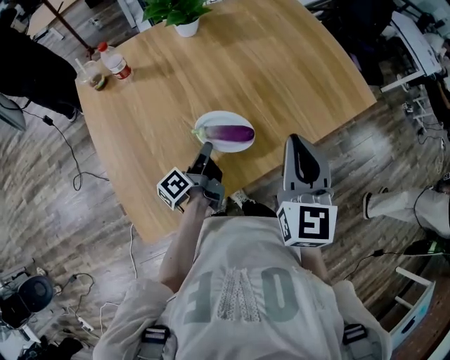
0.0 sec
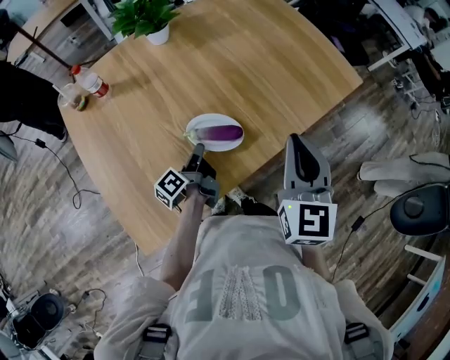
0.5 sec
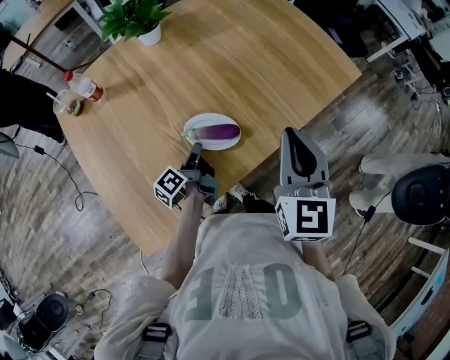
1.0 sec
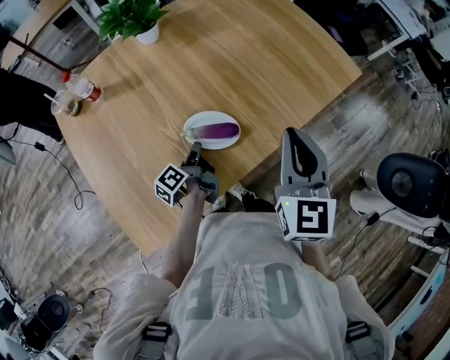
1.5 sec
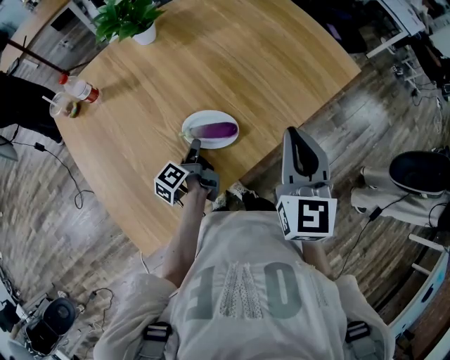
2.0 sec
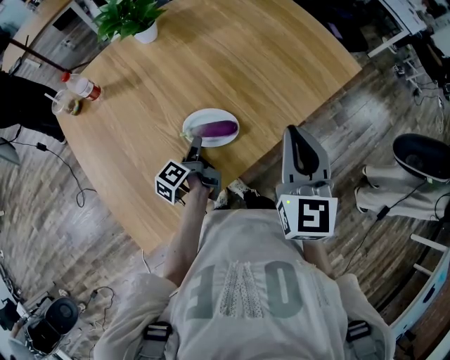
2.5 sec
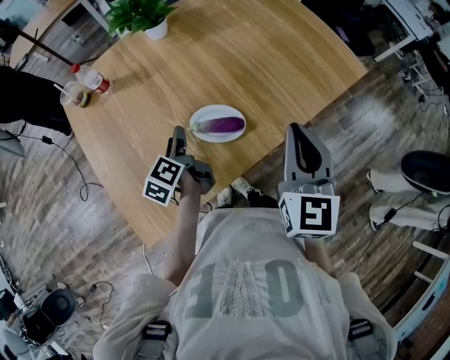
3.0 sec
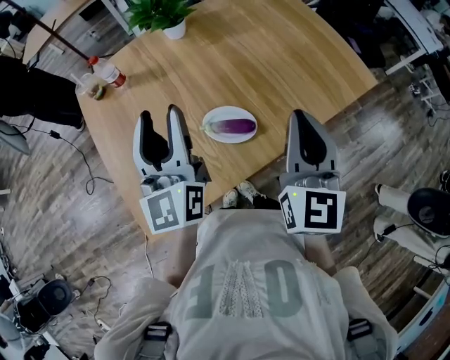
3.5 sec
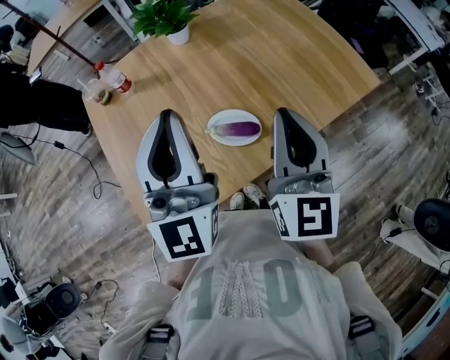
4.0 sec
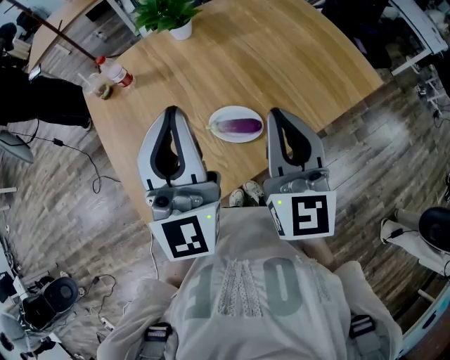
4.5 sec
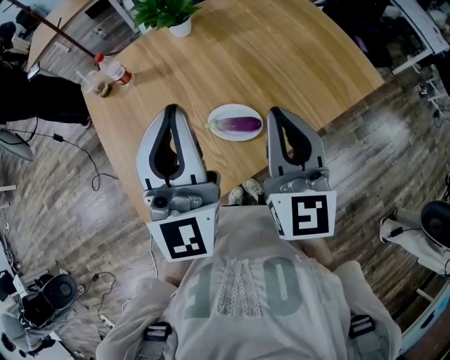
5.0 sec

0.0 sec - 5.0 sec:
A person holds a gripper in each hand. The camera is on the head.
0.0 sec - 2.5 sec: The right gripper moves approximately 5 cm.
2.5 sec - 5.0 sec: The right gripper changes place by some 10 cm.

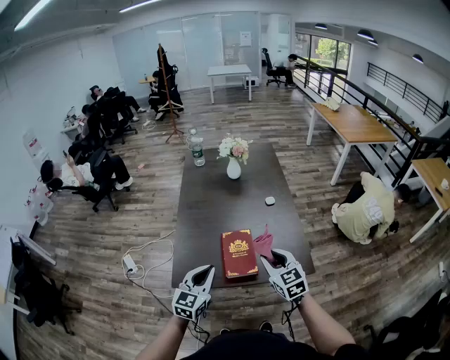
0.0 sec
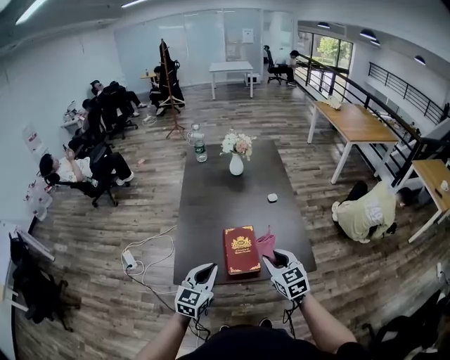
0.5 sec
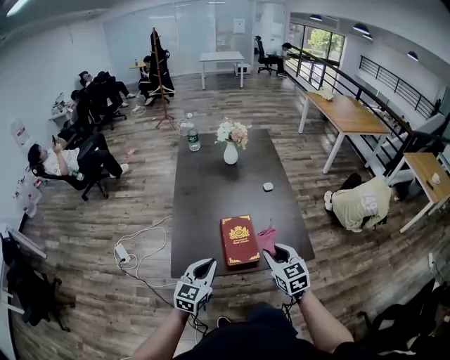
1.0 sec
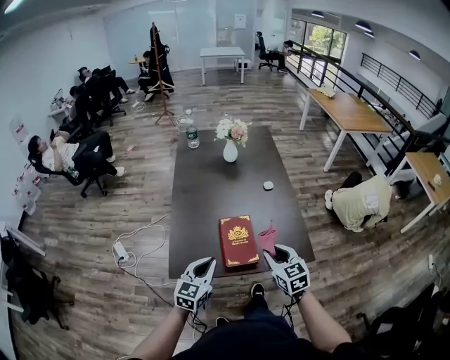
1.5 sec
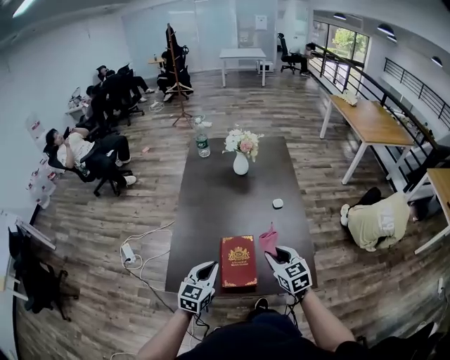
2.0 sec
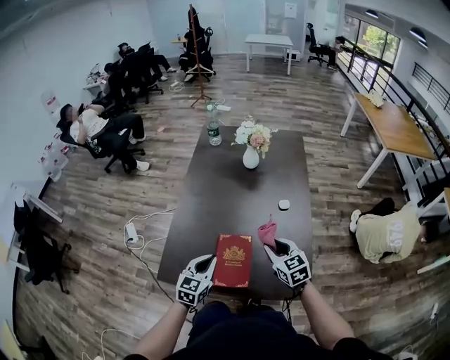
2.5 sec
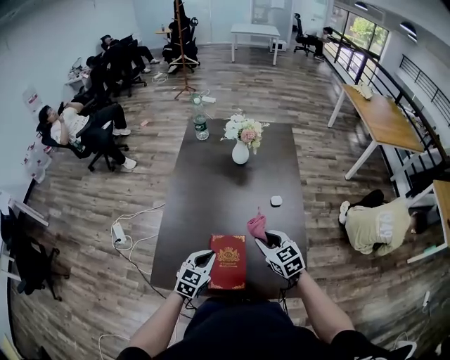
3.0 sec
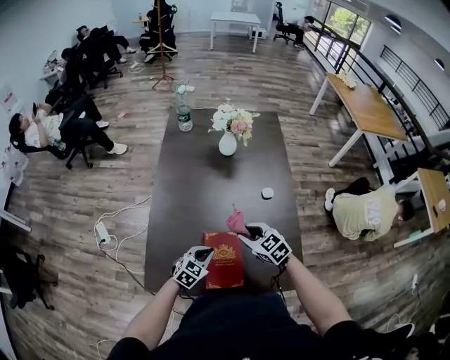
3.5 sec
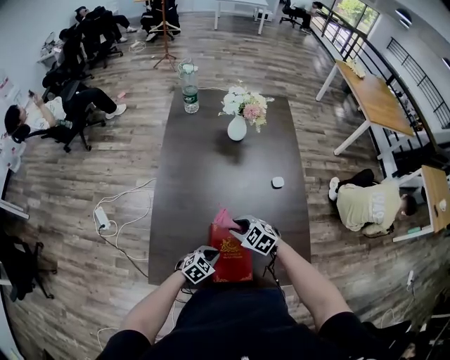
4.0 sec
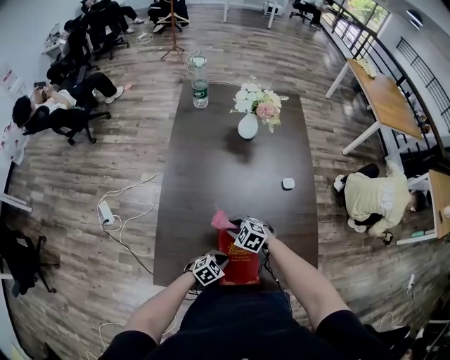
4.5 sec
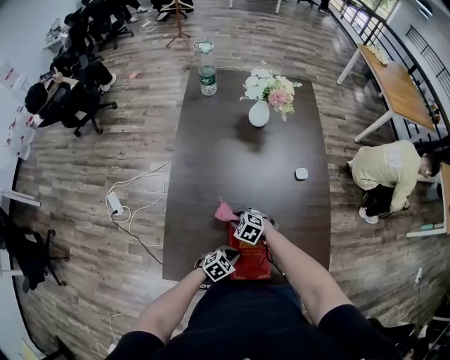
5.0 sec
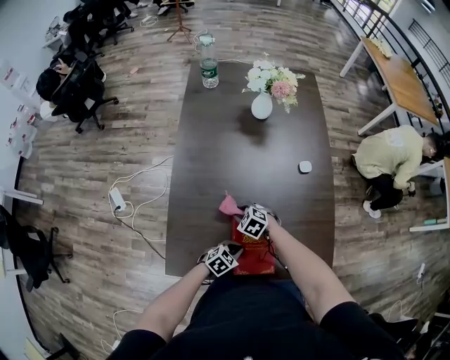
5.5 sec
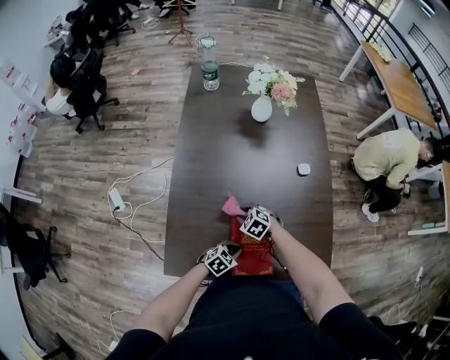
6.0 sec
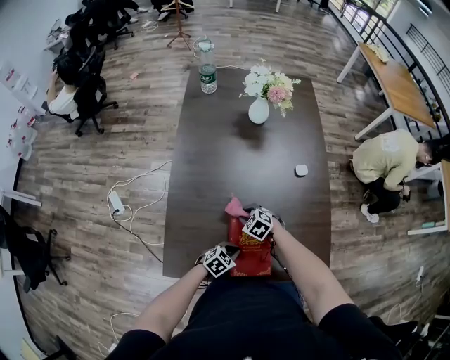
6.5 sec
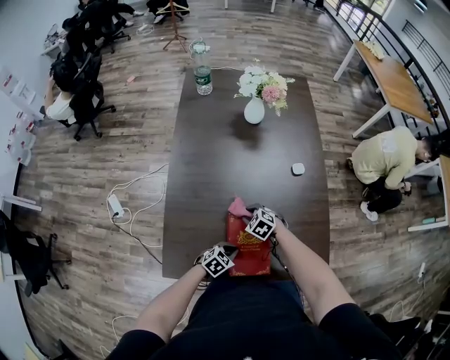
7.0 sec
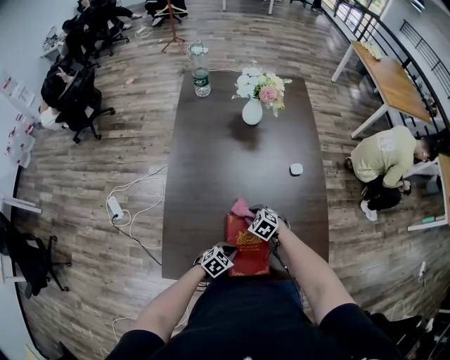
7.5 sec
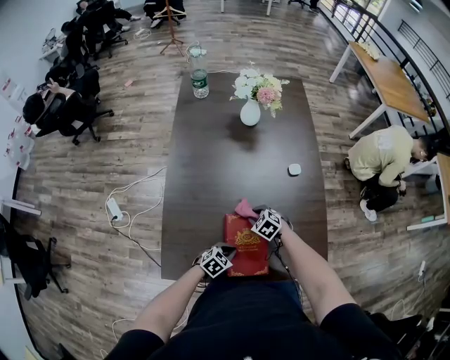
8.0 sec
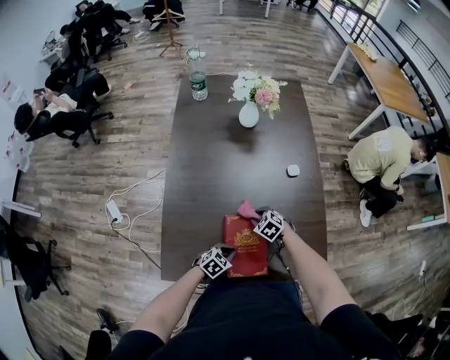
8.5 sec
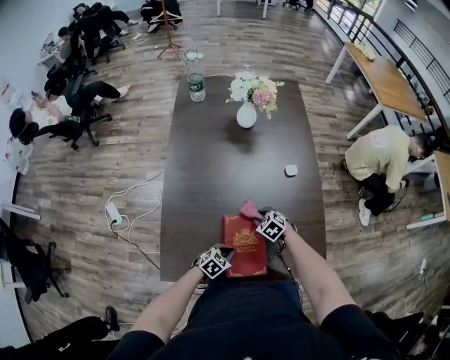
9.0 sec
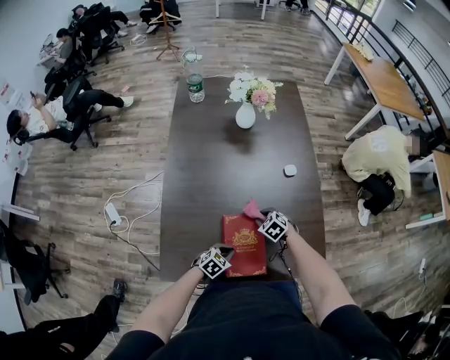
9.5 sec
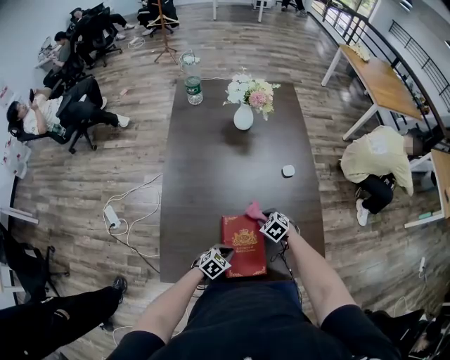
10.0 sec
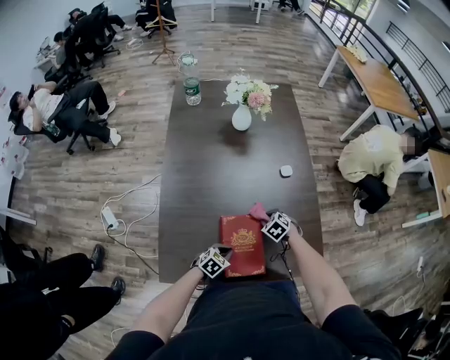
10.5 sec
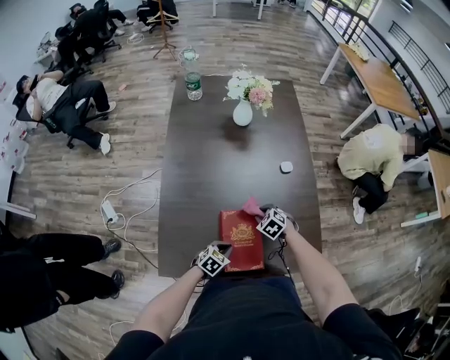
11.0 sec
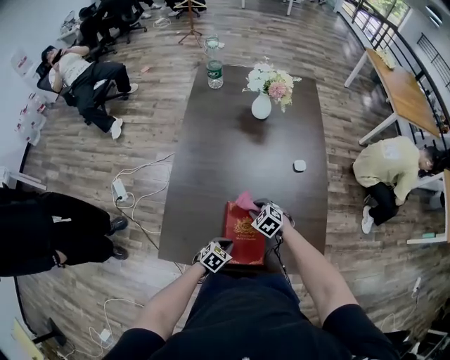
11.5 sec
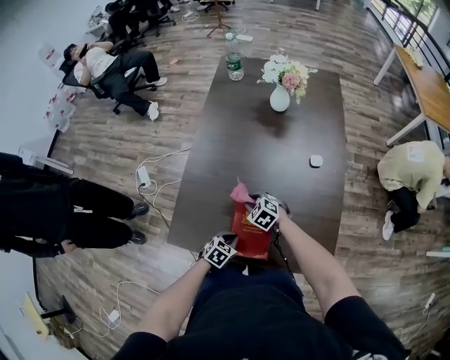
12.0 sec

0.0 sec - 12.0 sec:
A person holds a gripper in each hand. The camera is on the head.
0.0 sec - 2.0 sec: Both grippers travel together forward and downward, approximately 10 cm.
2.0 sec - 4.0 sec: The right gripper travels downward, forward and to the left by roughly 25 cm, and turns by roughly 40 degrees. Meanwhile the left gripper travels downward by roughly 25 cm, and changes its angle by about 40 degrees.
4.0 sec - 6.0 sec: The right gripper travels downward by roughly 15 cm.
6.0 sec - 8.0 sec: The right gripper moves some 10 cm.
8.0 sec - 10.0 sec: The right gripper moves to the right, about 5 cm.
10.0 sec - 12.0 sec: The right gripper shifts by about 15 cm, and changes its angle by roughly 30 degrees. The left gripper rotates roughly 20 degrees.

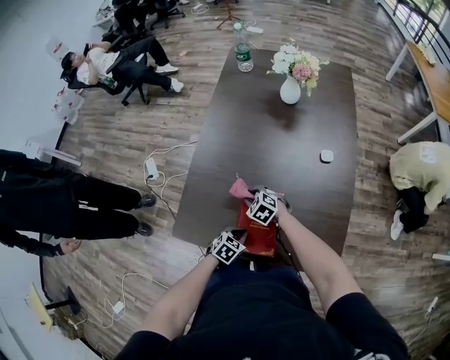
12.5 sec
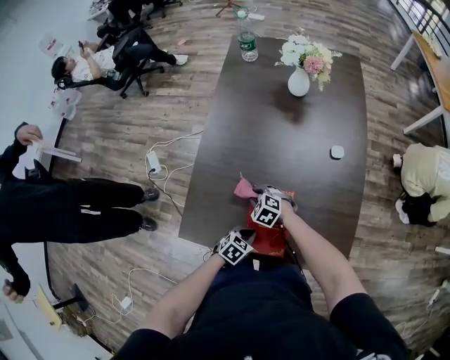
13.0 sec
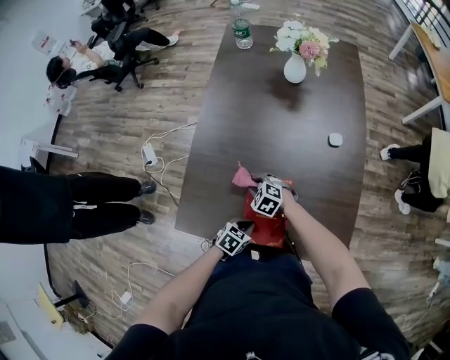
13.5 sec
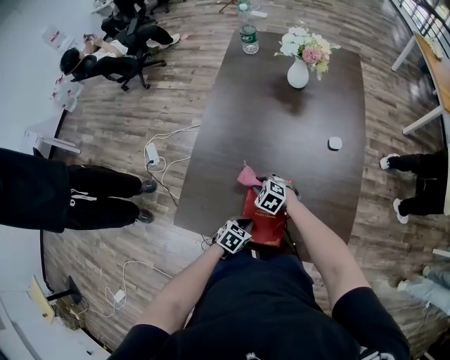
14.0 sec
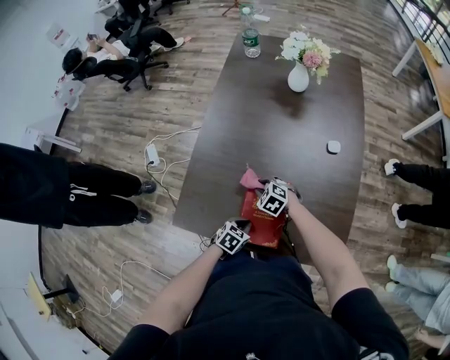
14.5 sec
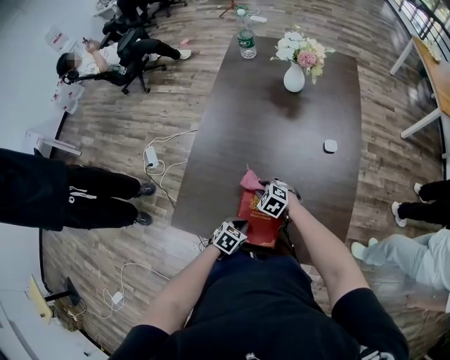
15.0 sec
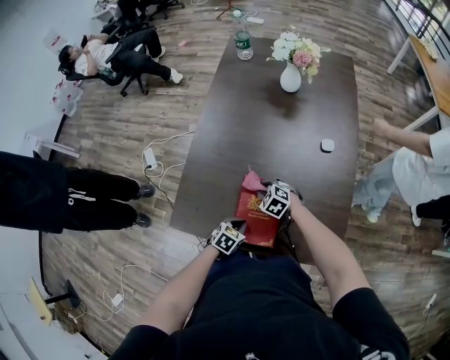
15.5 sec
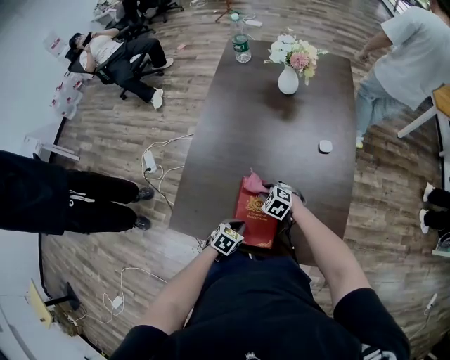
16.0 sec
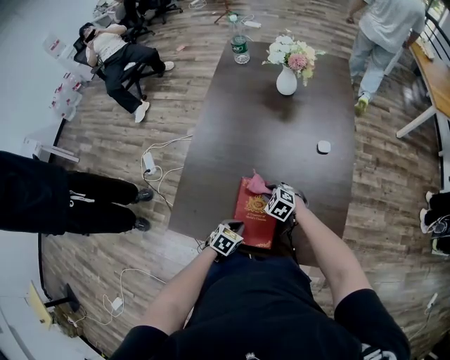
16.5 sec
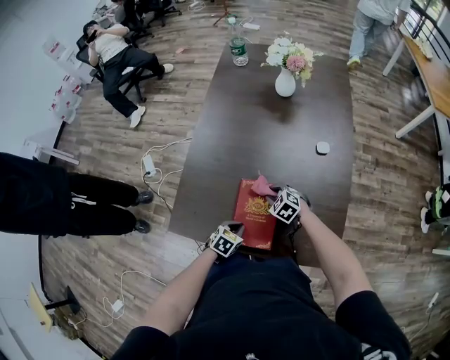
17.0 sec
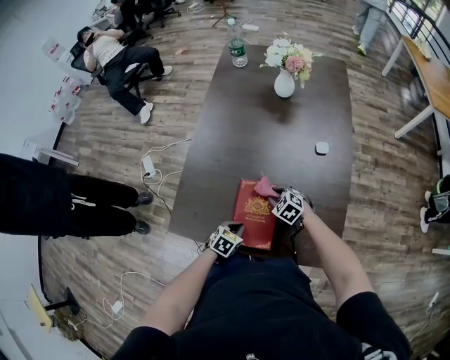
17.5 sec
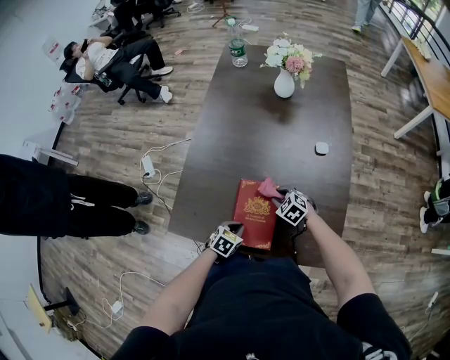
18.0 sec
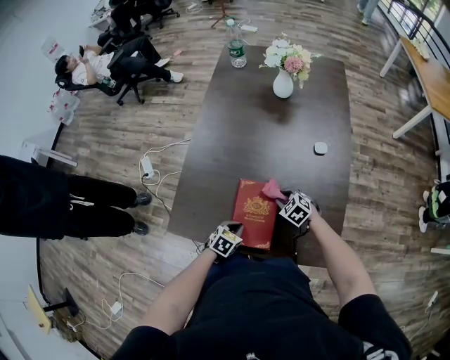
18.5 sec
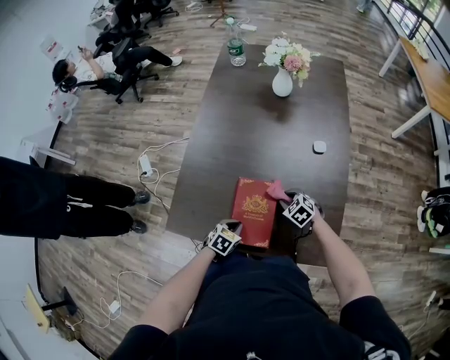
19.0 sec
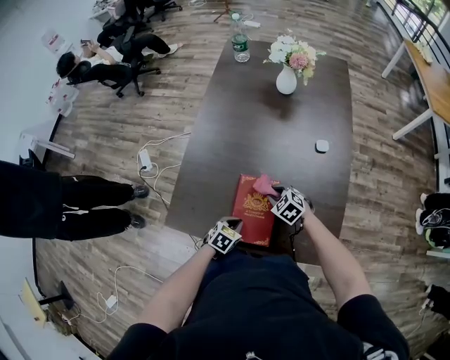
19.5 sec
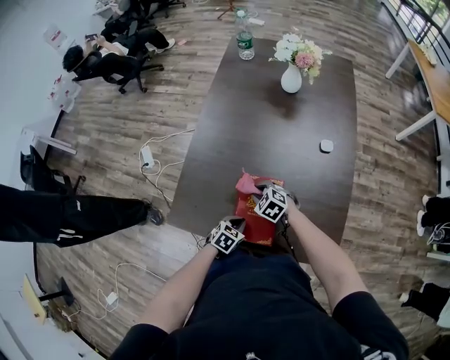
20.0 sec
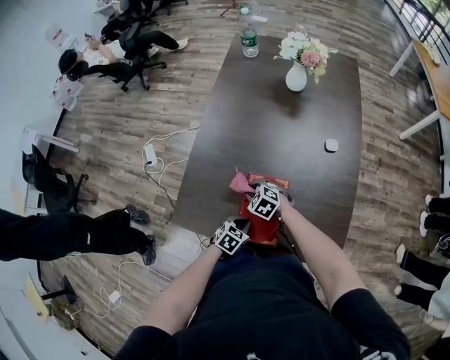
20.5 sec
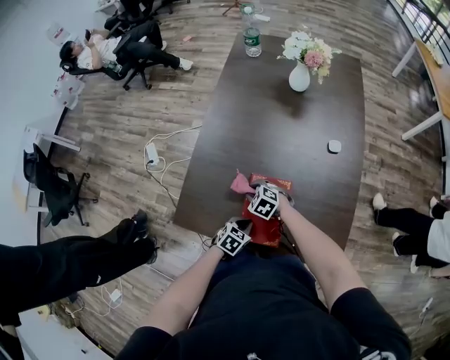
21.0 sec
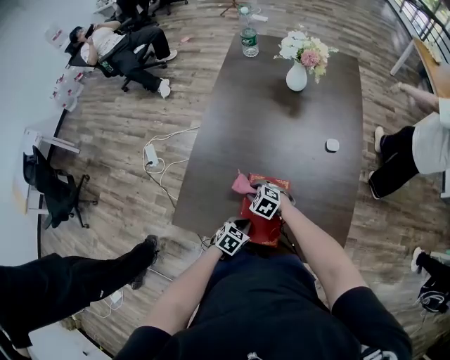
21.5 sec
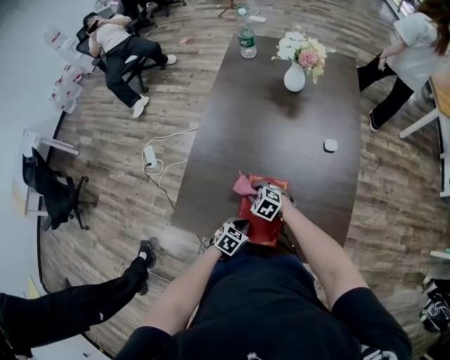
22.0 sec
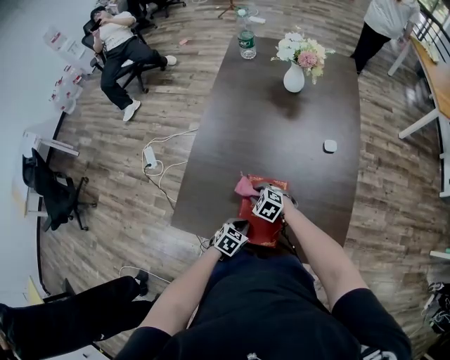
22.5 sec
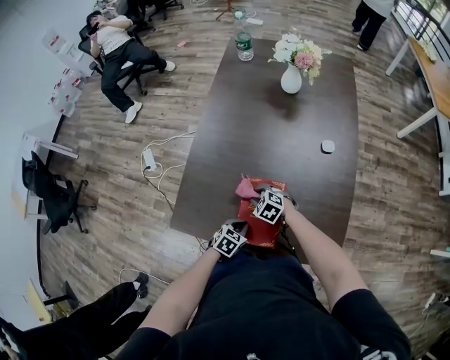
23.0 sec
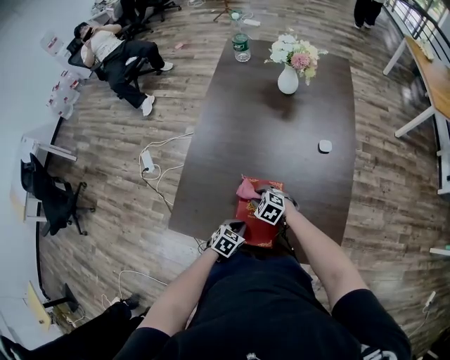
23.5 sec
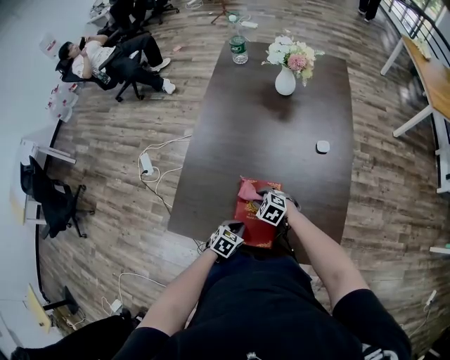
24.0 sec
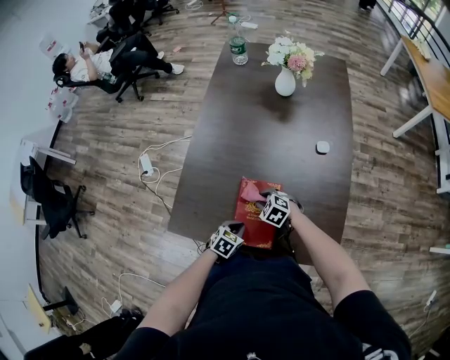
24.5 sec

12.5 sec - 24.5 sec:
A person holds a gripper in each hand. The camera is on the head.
12.5 sec - 14.5 sec: The grippers move only a little.
14.5 sec - 16.5 sec: The right gripper shifts about 5 cm to the right.
16.5 sec - 18.5 sec: The right gripper goes about 5 cm to the right.
18.5 sec - 20.5 sec: The right gripper shifts about 15 cm to the left.
20.5 sec - 22.5 sec: The grippers make only small movements.
22.5 sec - 24.5 sec: The right gripper changes place by some 5 cm.
